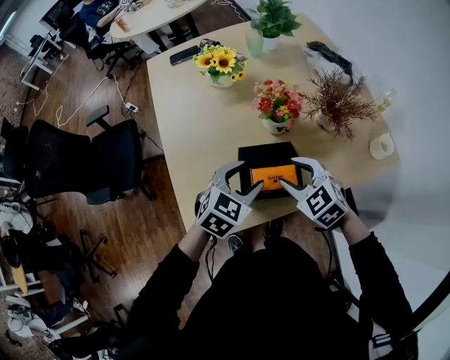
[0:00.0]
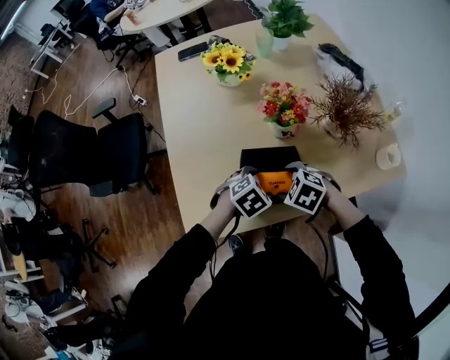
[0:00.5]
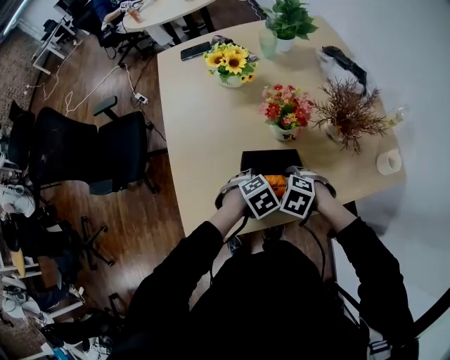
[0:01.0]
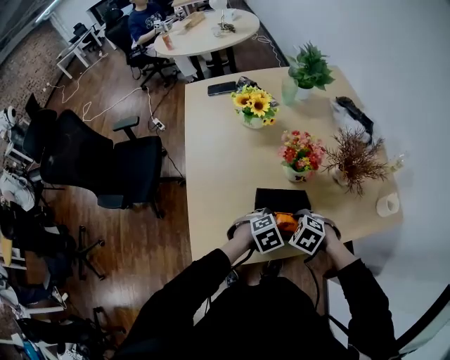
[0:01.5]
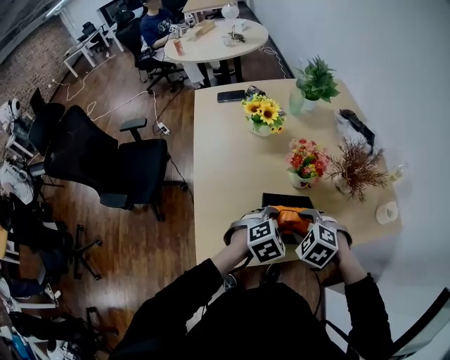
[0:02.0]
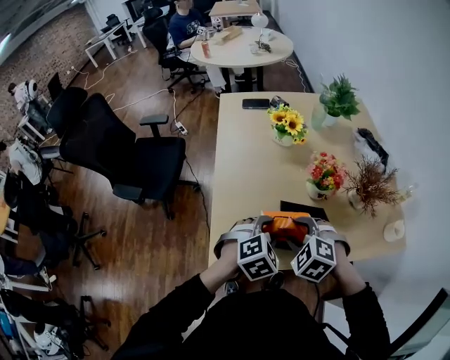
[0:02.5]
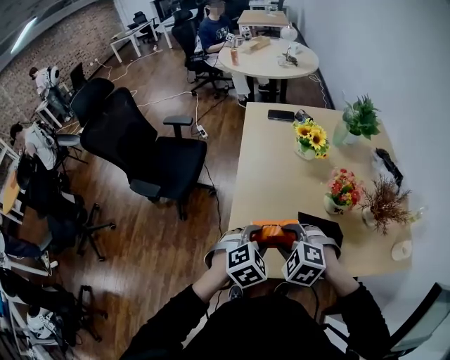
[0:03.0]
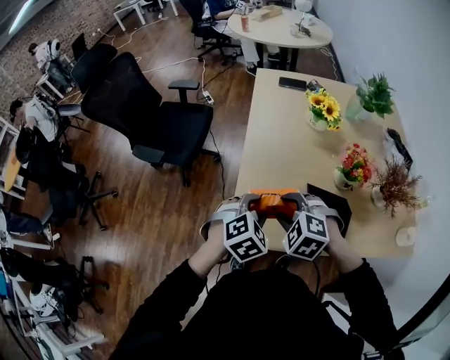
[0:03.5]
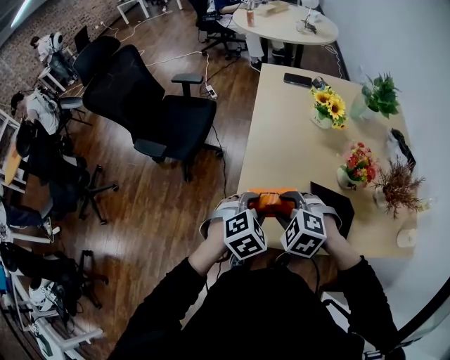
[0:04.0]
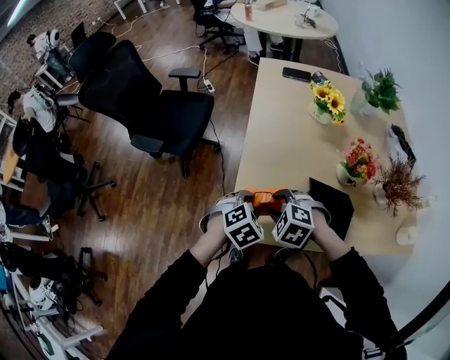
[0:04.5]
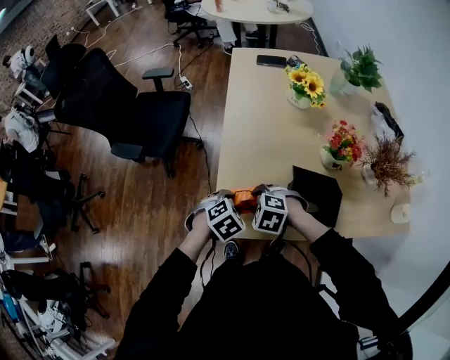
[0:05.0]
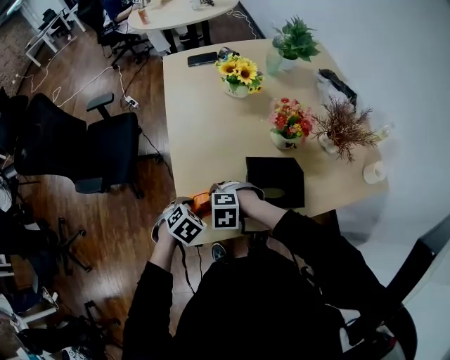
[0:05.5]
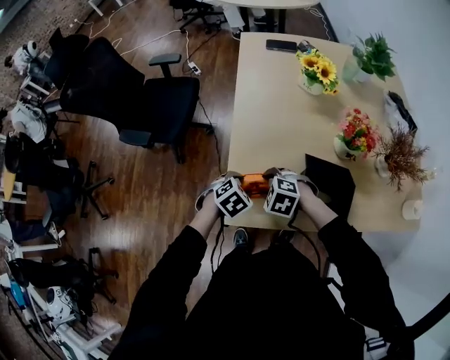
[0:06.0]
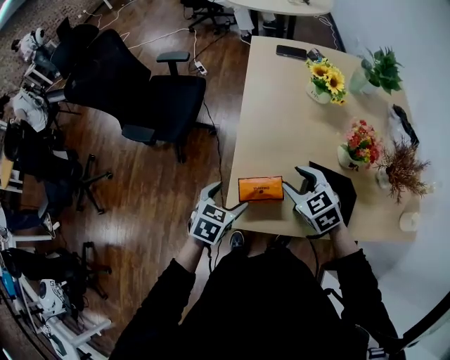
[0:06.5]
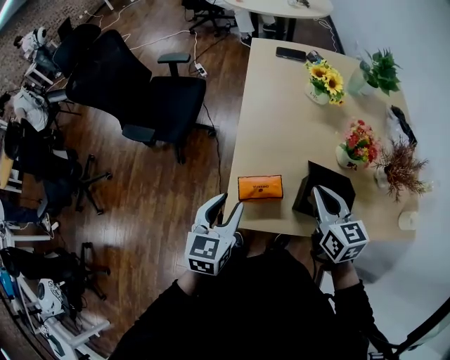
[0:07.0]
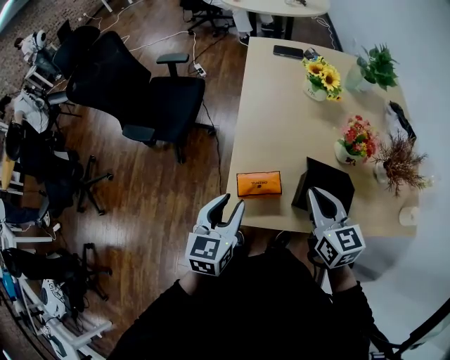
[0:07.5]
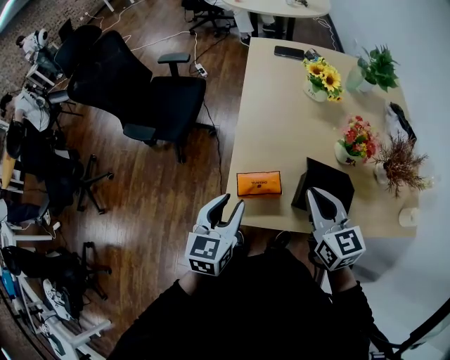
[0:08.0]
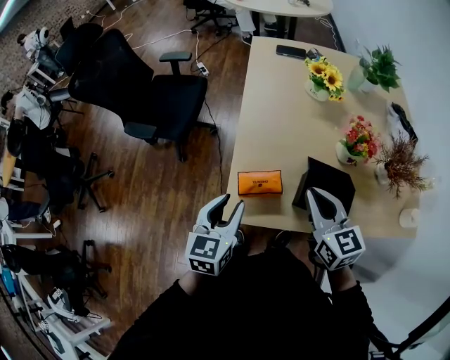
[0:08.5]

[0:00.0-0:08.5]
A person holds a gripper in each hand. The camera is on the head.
0:00.0 to 0:02.0: The left gripper travels downward and back again, roughly 15 cm each way, and rotates approximately 20 degrees; the right gripper reaches approximately 10 cm downward, then returns, and changes its angle by approximately 30 degrees.
0:02.0 to 0:04.0: The right gripper ends up roughly 20 cm from where it was, and rotates about 30 degrees. The left gripper ends up roughly 25 cm from where it was, and changes its angle by about 20 degrees.
0:04.0 to 0:06.5: The left gripper is displaced downward and to the left by roughly 10 cm, turns by some 40 degrees, and opens. Meanwhile the right gripper goes some 10 cm to the right and forward, travels downward and back again, about 15 cm each way, and changes its angle by roughly 40 degrees.
0:06.5 to 0:08.5: The left gripper is displaced upward by about 10 cm, changes its angle by approximately 30 degrees, and closes up, while the right gripper travels upward and backward by some 15 cm, turns by some 30 degrees, and closes up.

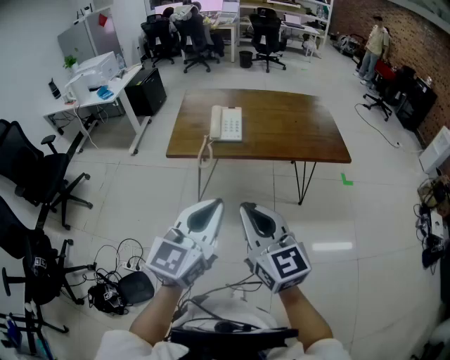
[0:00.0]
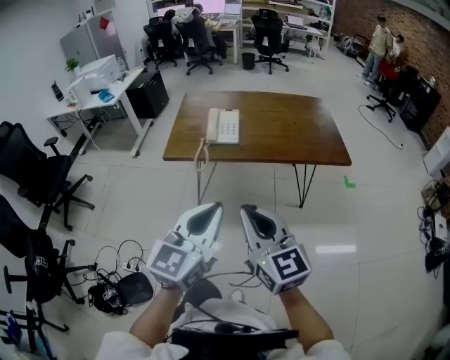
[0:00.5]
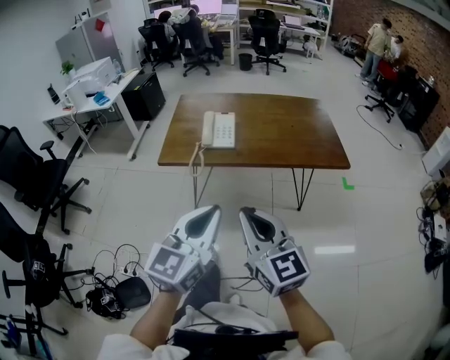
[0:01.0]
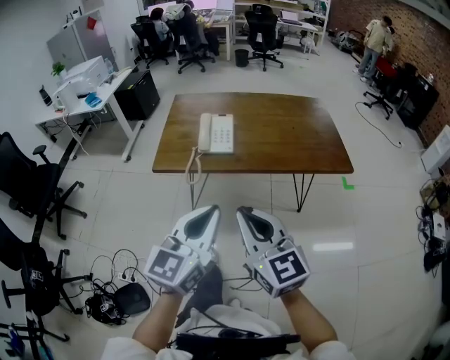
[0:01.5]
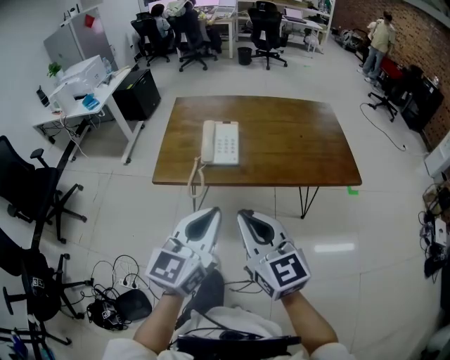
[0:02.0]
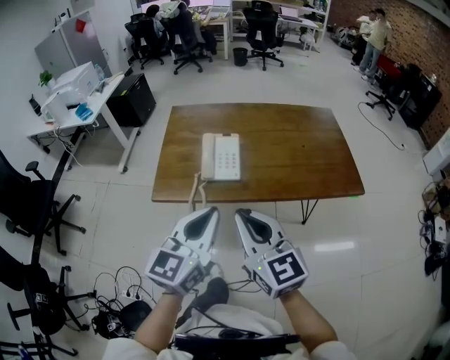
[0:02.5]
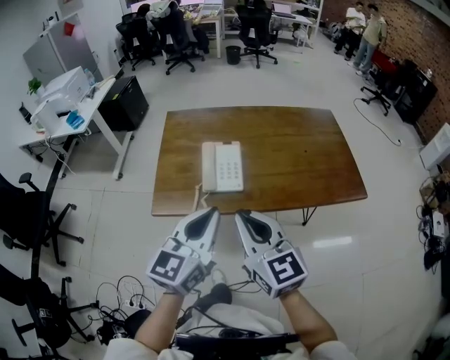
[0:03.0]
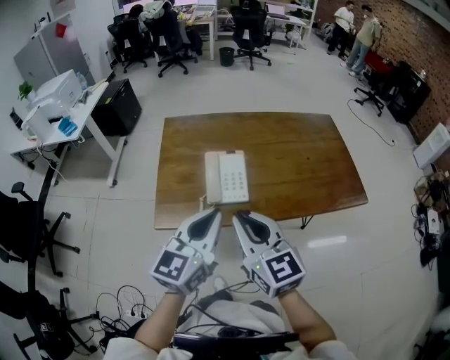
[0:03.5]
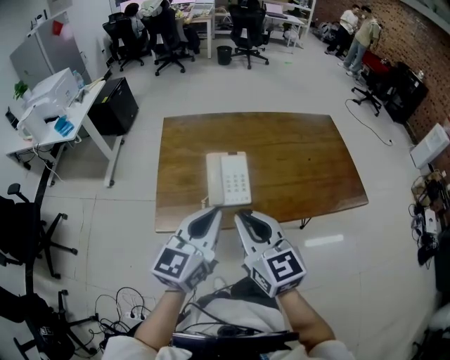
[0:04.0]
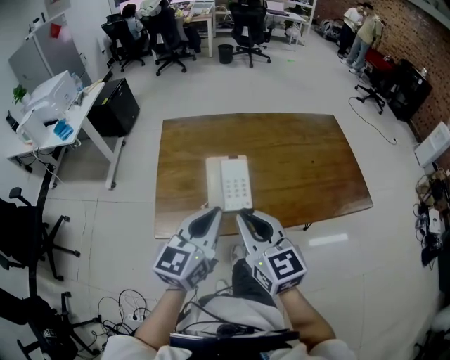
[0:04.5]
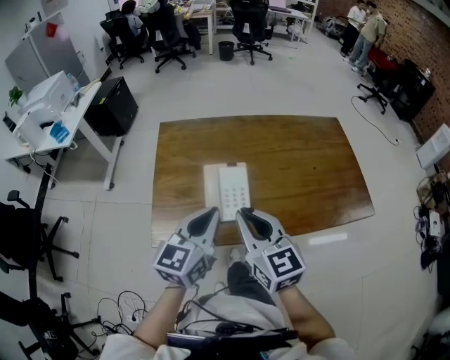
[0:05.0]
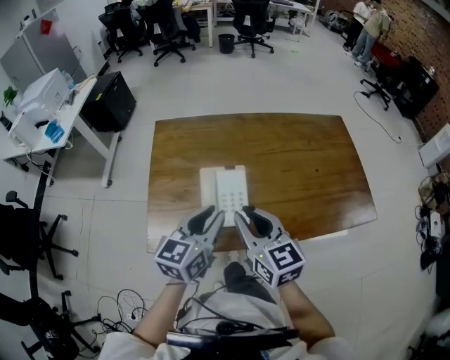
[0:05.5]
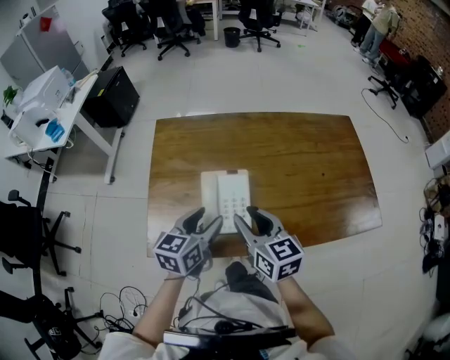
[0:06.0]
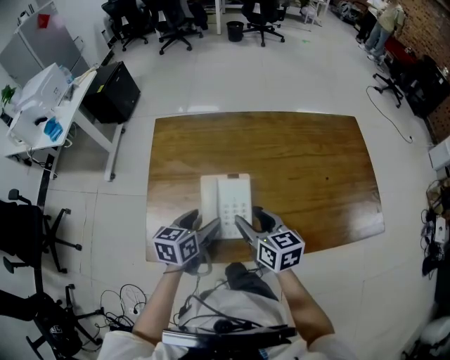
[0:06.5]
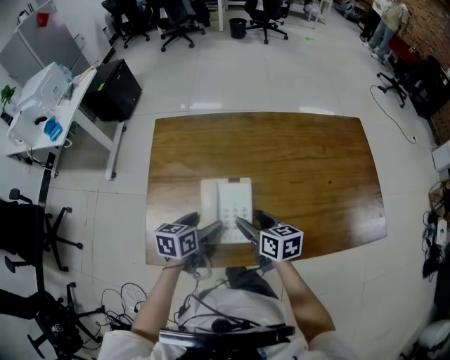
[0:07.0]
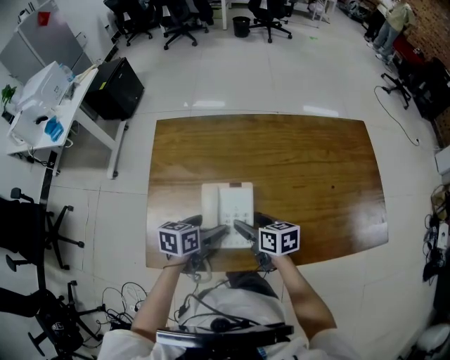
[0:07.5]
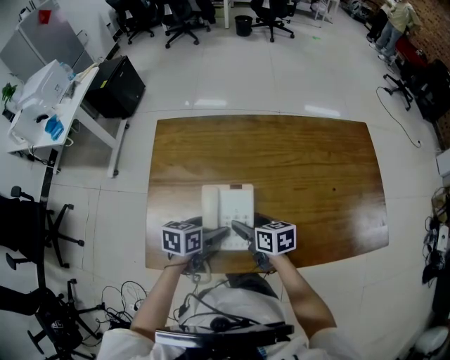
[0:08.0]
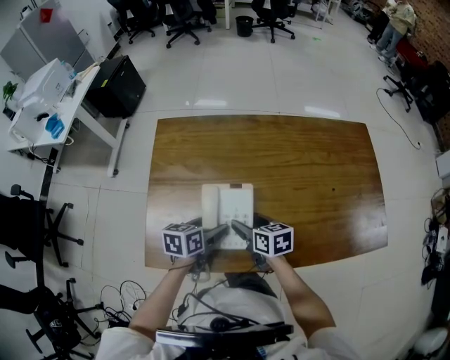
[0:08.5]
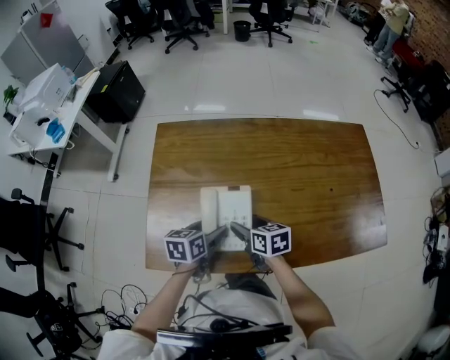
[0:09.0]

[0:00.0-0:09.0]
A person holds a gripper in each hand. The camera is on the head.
0:00.0 to 0:02.0: The two grippers go some 15 cm forward.
0:02.0 to 0:04.5: The grippers both shift forward by some 20 cm.
0:04.5 to 0:07.0: The grippers both shift downward and forward by some 25 cm. The right gripper changes its angle by about 40 degrees, and opens up; the left gripper tips its fingers downward by approximately 30 degrees, and opens.
0:07.0 to 0:09.0: There are only small adjustments of the grippers.

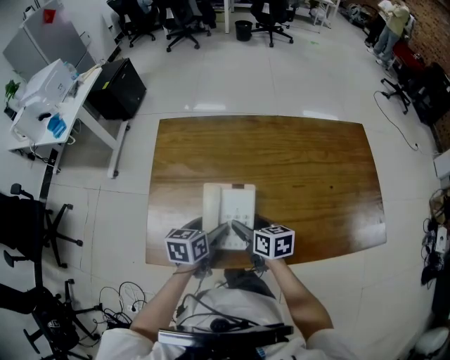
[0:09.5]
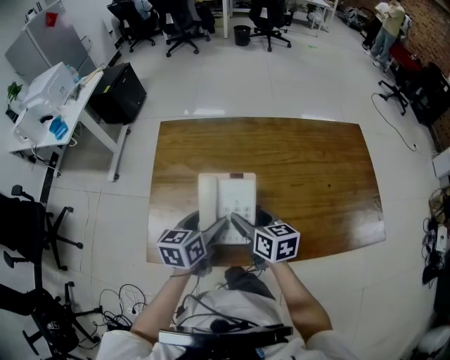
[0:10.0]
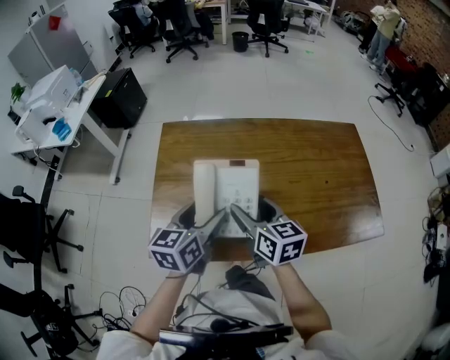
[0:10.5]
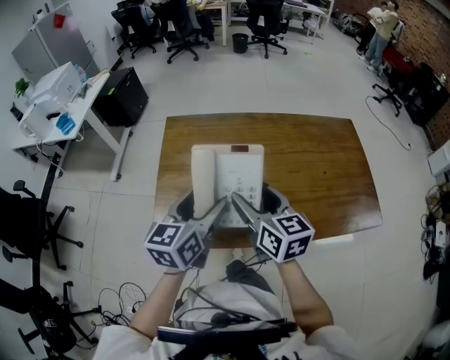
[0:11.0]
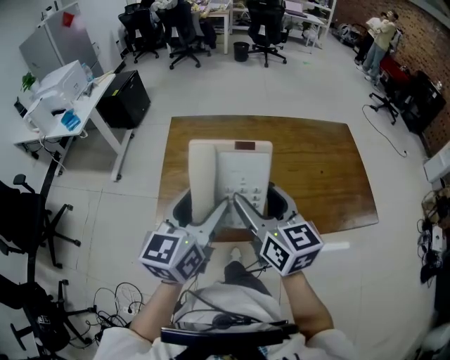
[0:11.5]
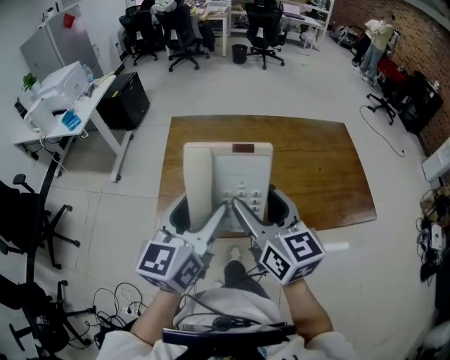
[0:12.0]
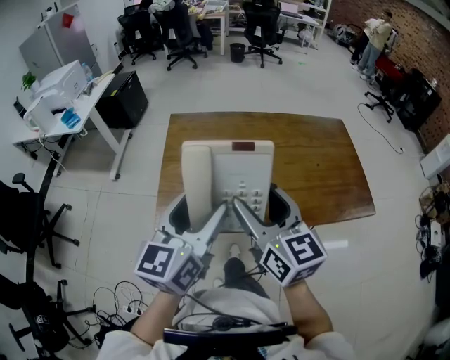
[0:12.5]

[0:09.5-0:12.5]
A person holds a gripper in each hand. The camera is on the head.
0:09.5 to 0:11.0: The two grippers go some 20 cm upward. The left gripper turns by roughly 30 degrees. The right gripper turns by approximately 30 degrees.
0:11.0 to 0:12.5: The two grippers go some 15 cm backward and upward.

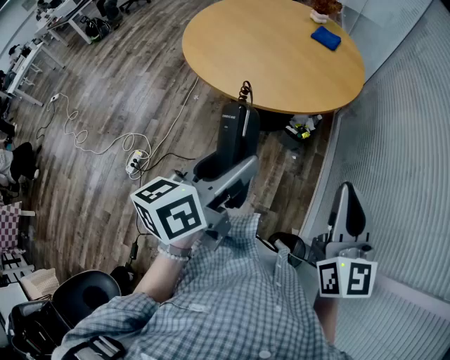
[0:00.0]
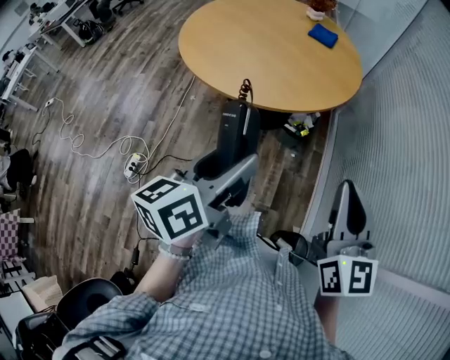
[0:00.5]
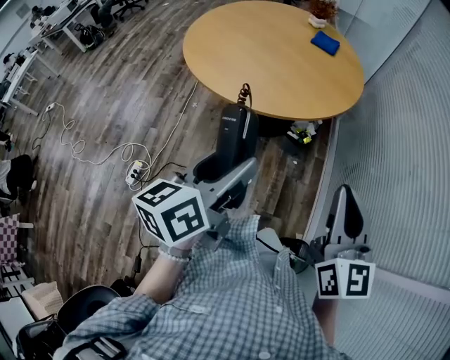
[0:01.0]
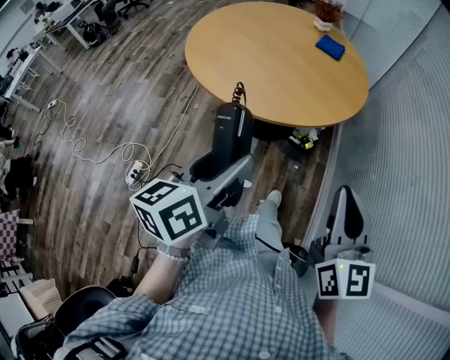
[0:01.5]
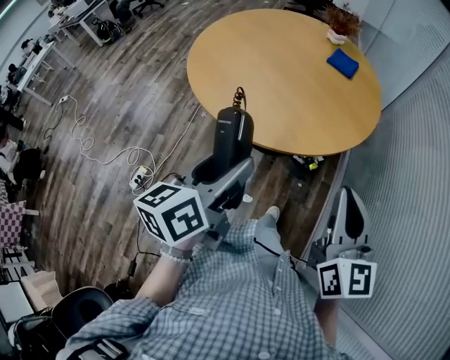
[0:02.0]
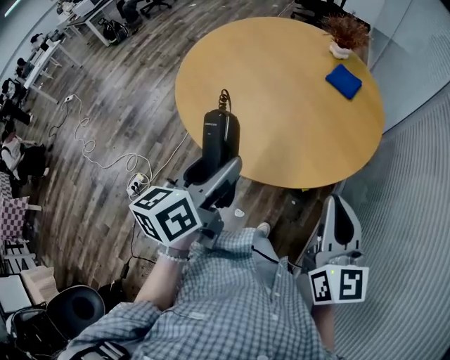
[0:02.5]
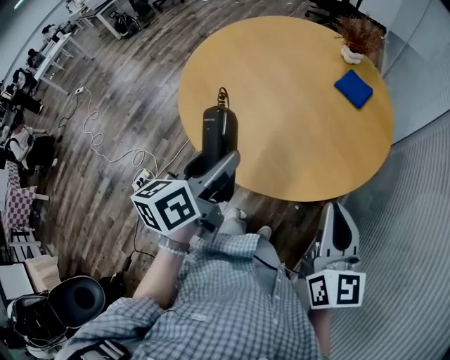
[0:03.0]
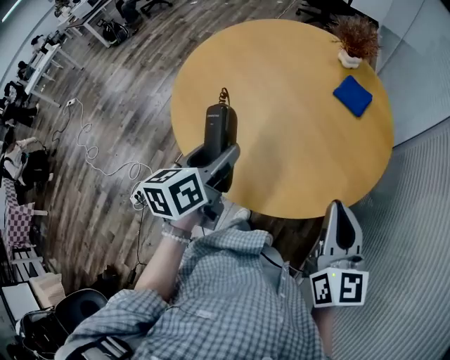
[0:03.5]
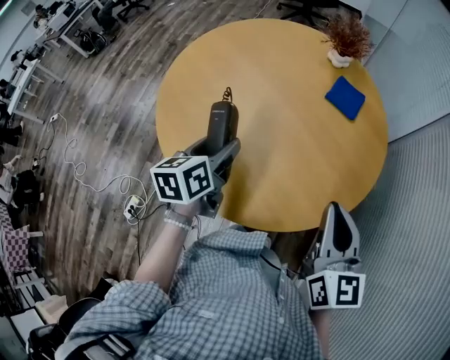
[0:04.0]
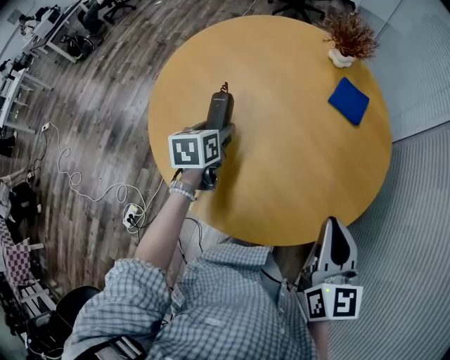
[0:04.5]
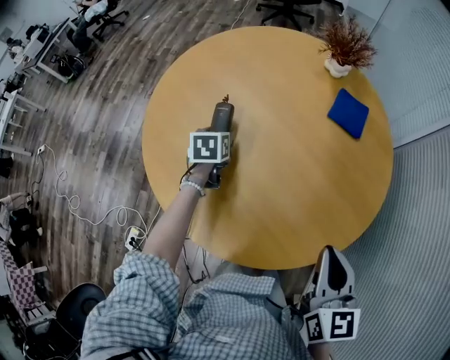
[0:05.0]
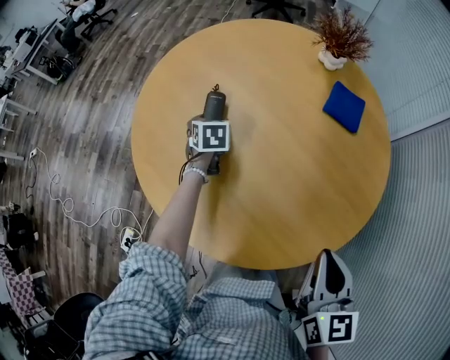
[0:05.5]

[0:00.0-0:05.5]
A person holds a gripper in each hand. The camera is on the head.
0:00.0 to 0:02.0: Both grippers travel together forward, about 15 cm.
0:02.0 to 0:03.5: The two grippers go about 25 cm forward.
0:03.5 to 0:05.5: The right gripper heads downward, forward and to the left, covering some 10 cm, and rotates approximately 20 degrees; the left gripper goes some 40 cm forward and downward, and swivels roughly 40 degrees.
